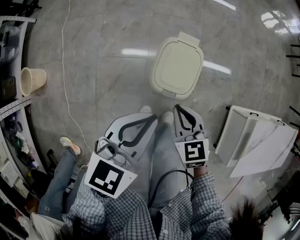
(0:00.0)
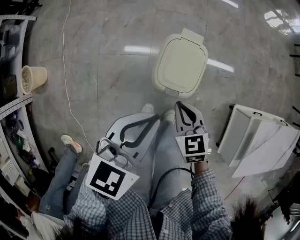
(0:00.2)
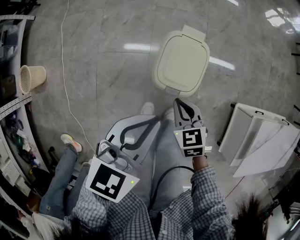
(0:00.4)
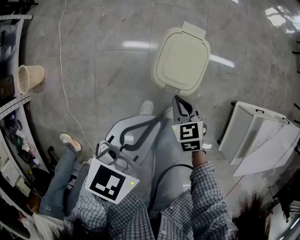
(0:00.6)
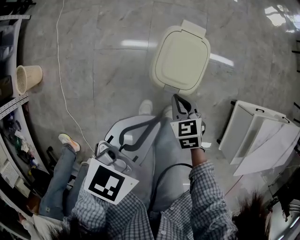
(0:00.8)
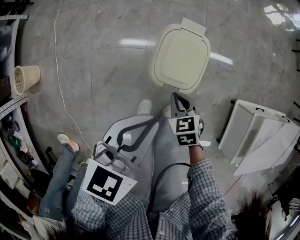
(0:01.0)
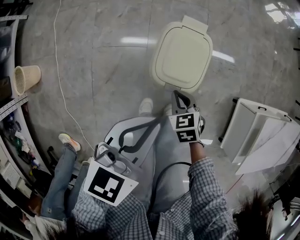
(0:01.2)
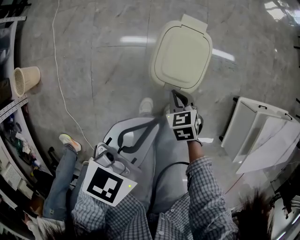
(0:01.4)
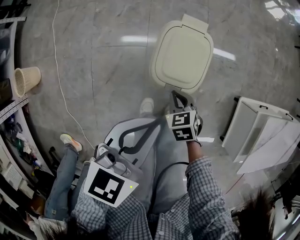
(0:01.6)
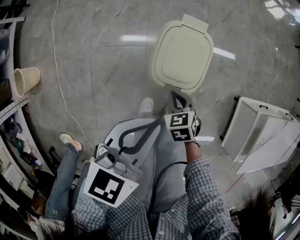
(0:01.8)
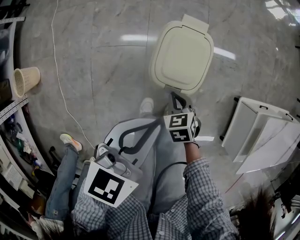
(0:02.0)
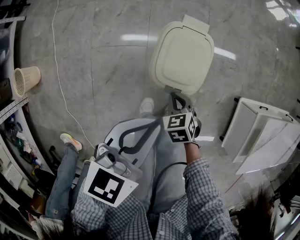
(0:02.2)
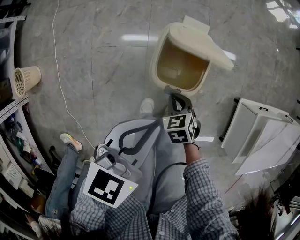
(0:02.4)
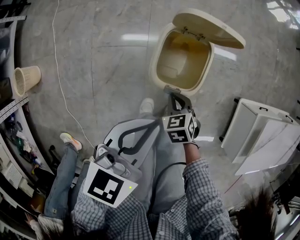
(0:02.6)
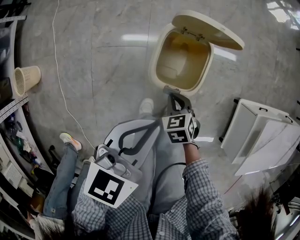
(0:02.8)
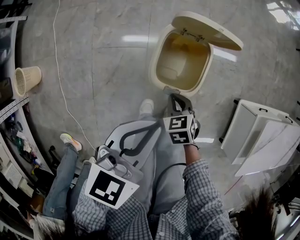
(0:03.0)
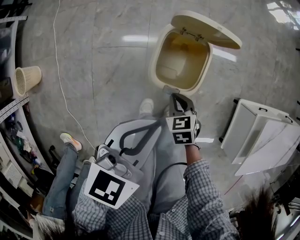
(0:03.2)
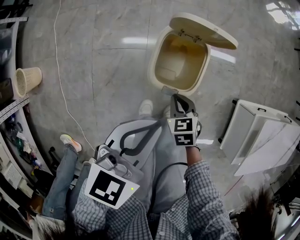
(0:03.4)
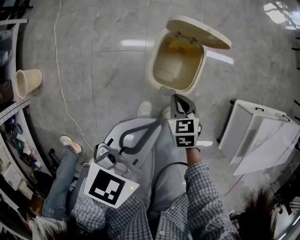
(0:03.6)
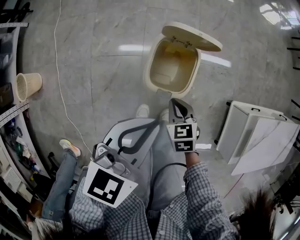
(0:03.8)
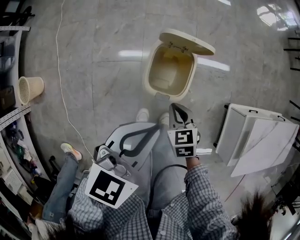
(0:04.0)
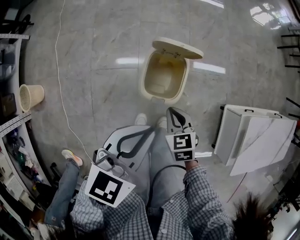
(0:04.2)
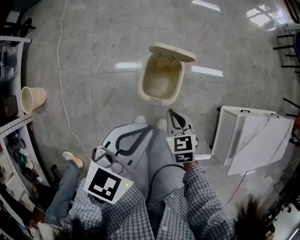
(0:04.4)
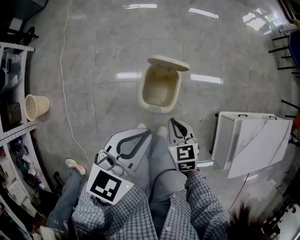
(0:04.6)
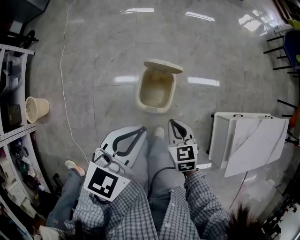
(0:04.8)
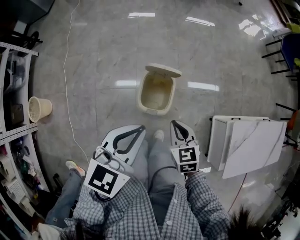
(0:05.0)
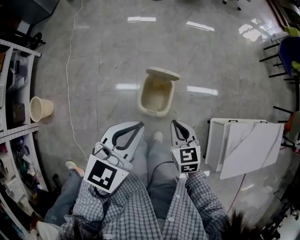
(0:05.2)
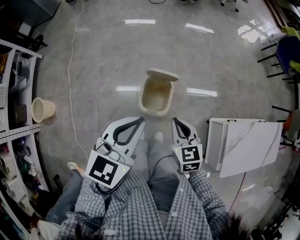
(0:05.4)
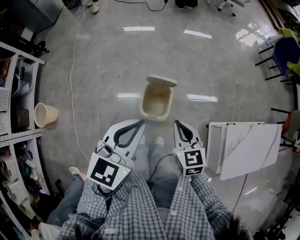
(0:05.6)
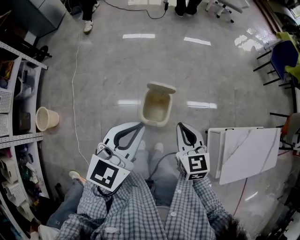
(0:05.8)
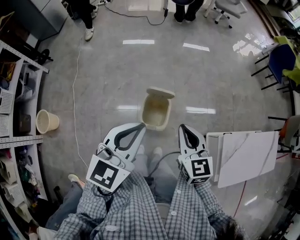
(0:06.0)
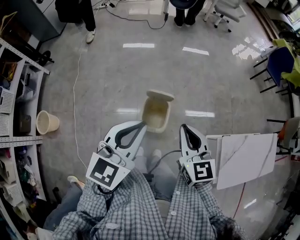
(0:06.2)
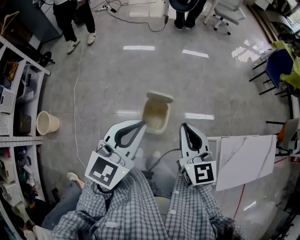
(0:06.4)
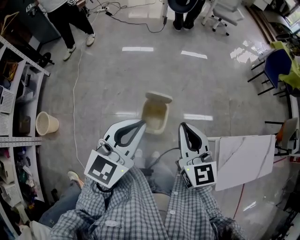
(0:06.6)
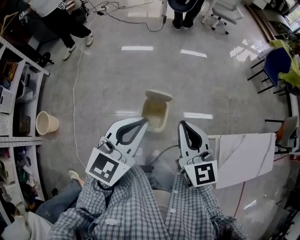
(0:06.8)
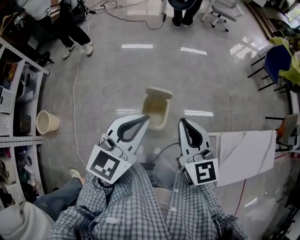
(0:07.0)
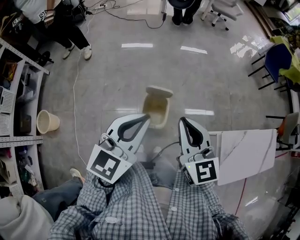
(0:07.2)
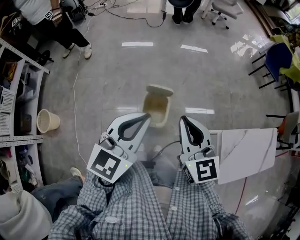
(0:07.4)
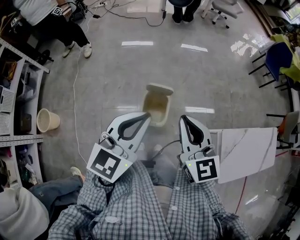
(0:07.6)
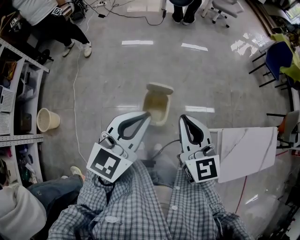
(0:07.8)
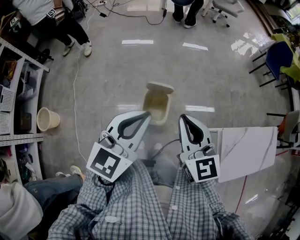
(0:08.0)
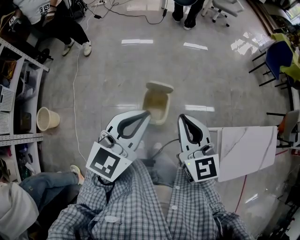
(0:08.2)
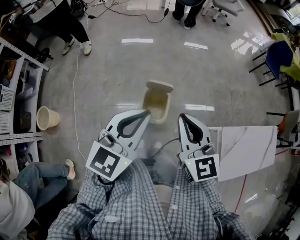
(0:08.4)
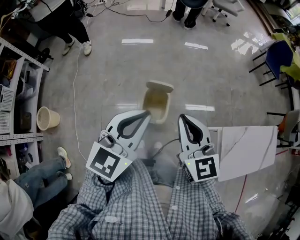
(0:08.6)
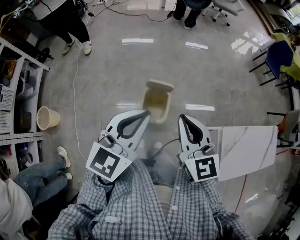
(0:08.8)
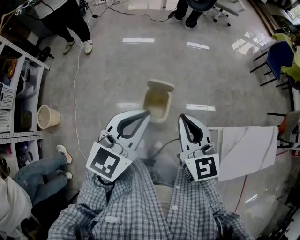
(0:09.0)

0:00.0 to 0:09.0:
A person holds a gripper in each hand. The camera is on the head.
0:00.0 to 0:01.6: The right gripper shifts roughly 20 cm downward, and rotates some 20 degrees. Meanwhile the left gripper shifts approximately 5 cm downward.
0:01.6 to 0:03.0: Neither gripper changes place.
0:03.0 to 0:04.4: The grippers both shift upward by some 15 cm.
0:04.4 to 0:06.0: The left gripper travels upward by about 20 cm. Meanwhile the right gripper shifts roughly 30 cm upward, and turns by roughly 30 degrees.
0:06.0 to 0:07.6: The right gripper moves upward, roughly 10 cm.
0:07.6 to 0:09.0: Neither gripper changes place.

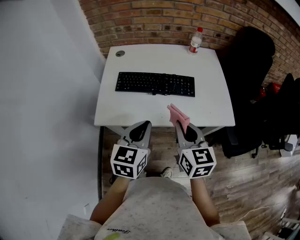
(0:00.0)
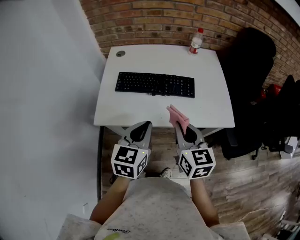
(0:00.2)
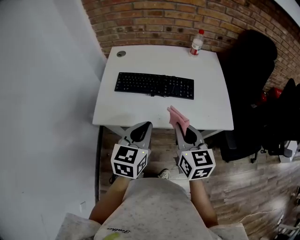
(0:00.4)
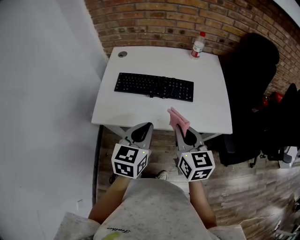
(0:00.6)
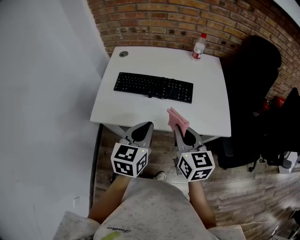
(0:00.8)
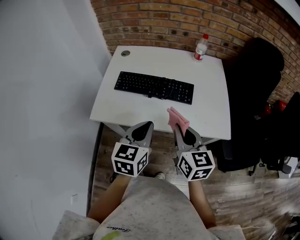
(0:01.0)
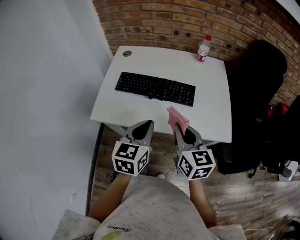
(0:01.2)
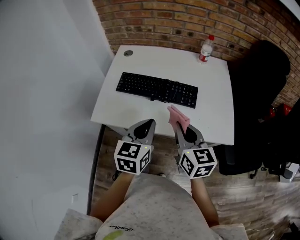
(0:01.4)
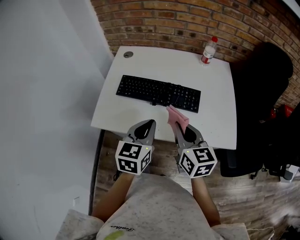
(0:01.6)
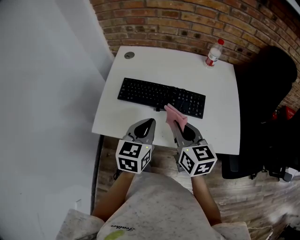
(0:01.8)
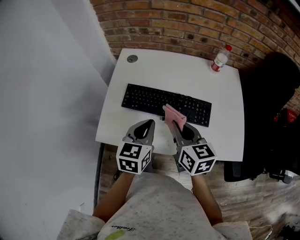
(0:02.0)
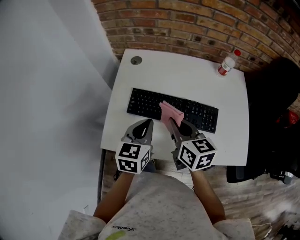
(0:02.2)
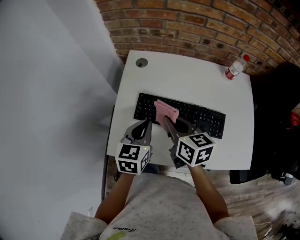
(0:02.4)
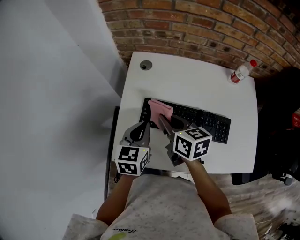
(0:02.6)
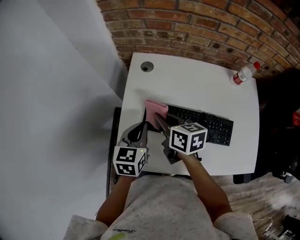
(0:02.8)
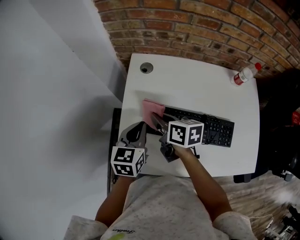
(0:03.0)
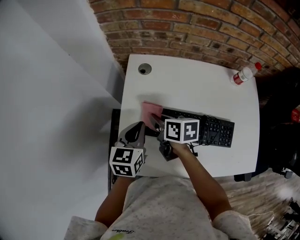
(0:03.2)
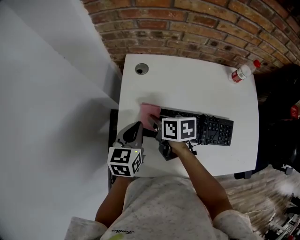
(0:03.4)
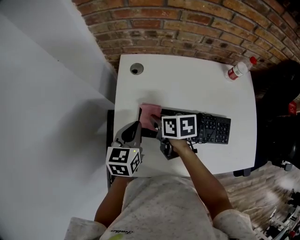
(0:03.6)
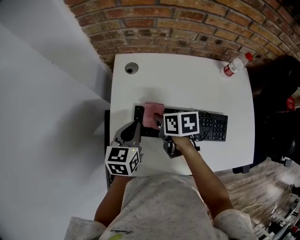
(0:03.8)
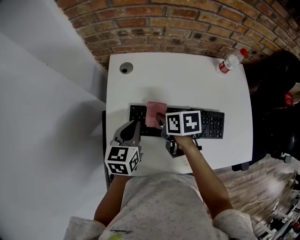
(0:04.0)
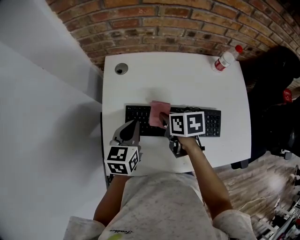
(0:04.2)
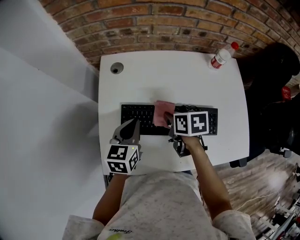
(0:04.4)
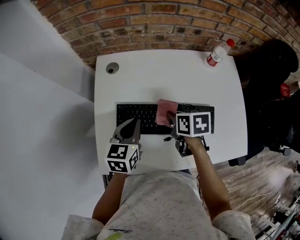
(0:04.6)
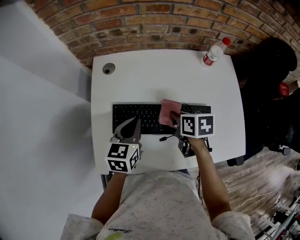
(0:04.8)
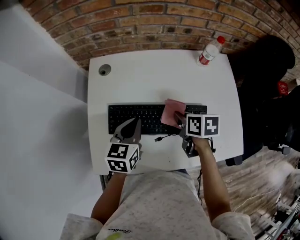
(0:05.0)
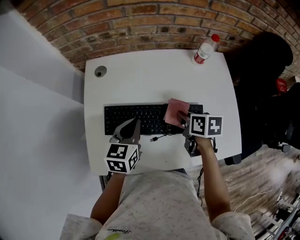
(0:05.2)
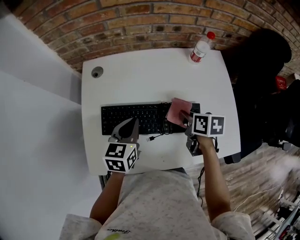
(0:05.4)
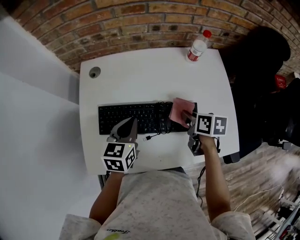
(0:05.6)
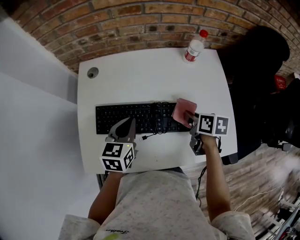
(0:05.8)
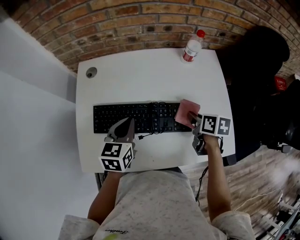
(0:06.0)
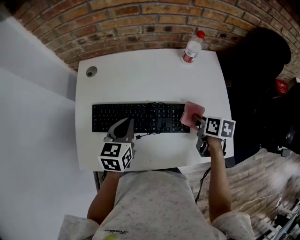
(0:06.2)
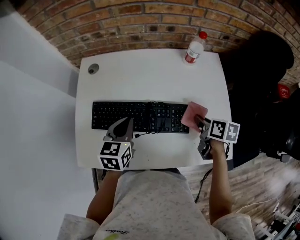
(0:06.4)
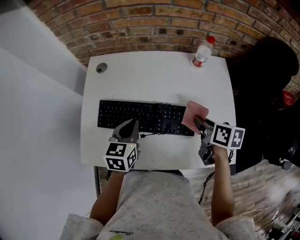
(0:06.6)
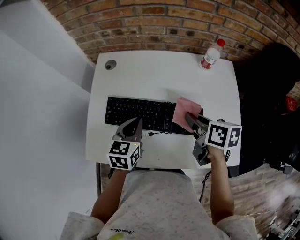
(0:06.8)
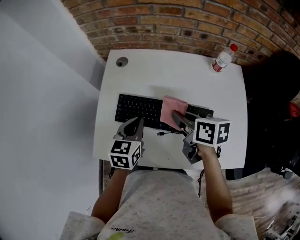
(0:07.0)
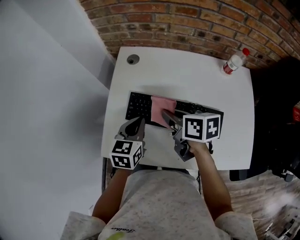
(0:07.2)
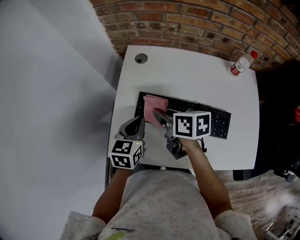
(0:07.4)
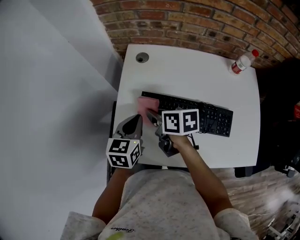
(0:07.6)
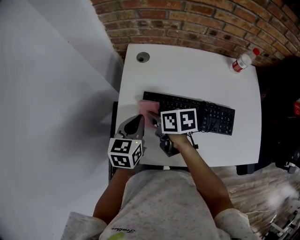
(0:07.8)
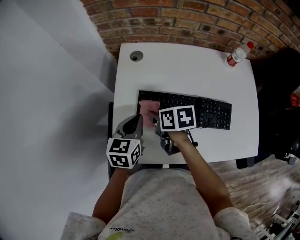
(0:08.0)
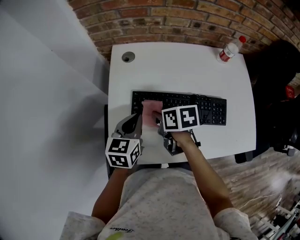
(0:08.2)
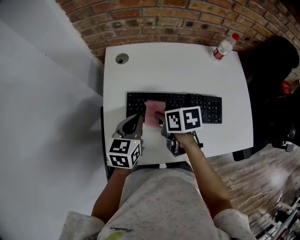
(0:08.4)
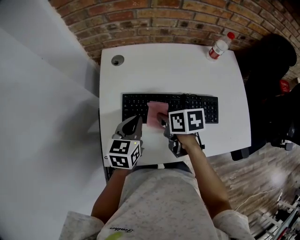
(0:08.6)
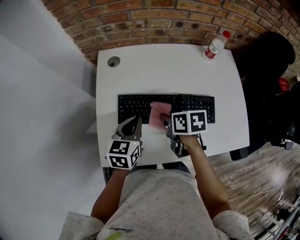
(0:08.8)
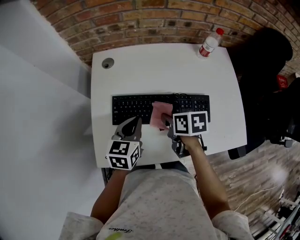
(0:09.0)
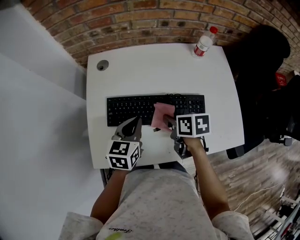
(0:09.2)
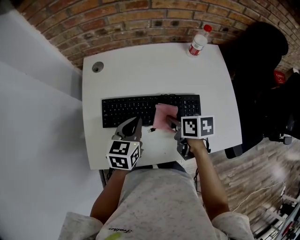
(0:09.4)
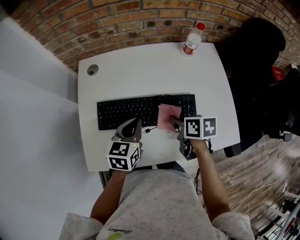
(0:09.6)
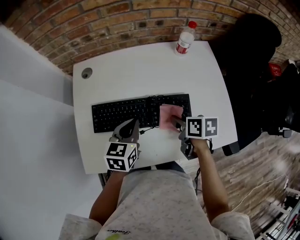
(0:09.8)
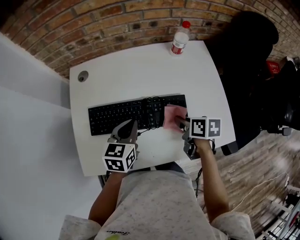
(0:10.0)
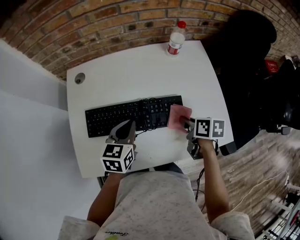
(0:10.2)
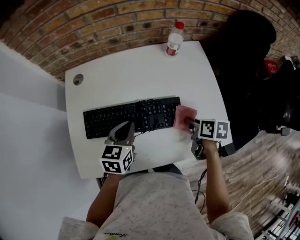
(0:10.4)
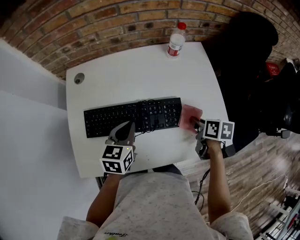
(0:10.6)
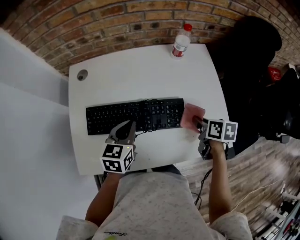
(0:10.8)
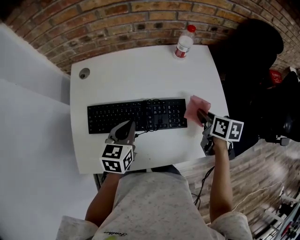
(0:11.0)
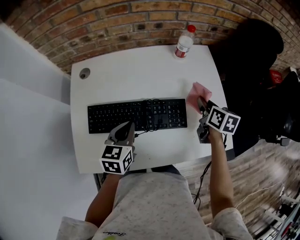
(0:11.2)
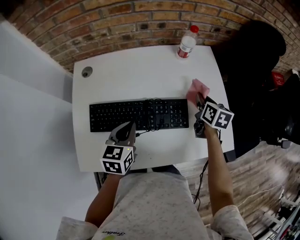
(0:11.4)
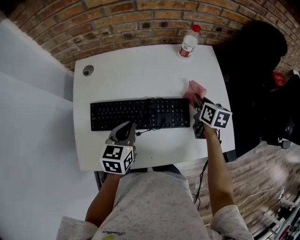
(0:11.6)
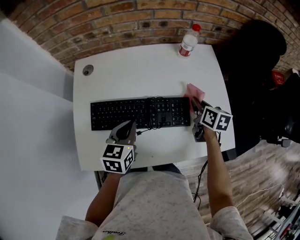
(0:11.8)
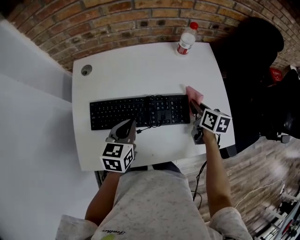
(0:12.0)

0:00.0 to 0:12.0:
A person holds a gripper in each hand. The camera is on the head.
0:00.0 to 0:01.6: Both grippers move forward, roughly 10 cm.
0:01.6 to 0:03.0: The two grippers go approximately 35 cm forward and to the left. The right gripper rotates some 30 degrees.
0:03.0 to 0:04.4: The right gripper goes roughly 15 cm to the right, and rotates about 20 degrees. Meanwhile the left gripper moves to the right, approximately 10 cm.
0:04.4 to 0:06.0: The right gripper travels to the right by approximately 25 cm; the left gripper travels to the right by some 10 cm.
0:06.0 to 0:07.6: The left gripper moves to the left, approximately 20 cm. Meanwhile the right gripper heads to the left, covering roughly 40 cm, and swivels approximately 30 degrees.
0:07.6 to 0:09.0: The left gripper shifts approximately 10 cm to the right. The right gripper heads to the right, covering some 15 cm.
0:09.0 to 0:10.4: The right gripper moves to the right, approximately 25 cm. The left gripper travels to the right by roughly 10 cm.
0:10.4 to 0:12.0: The right gripper travels forward by approximately 5 cm.

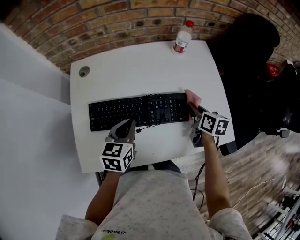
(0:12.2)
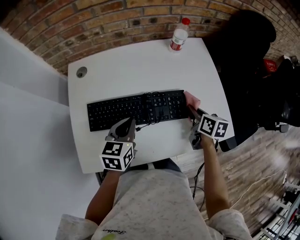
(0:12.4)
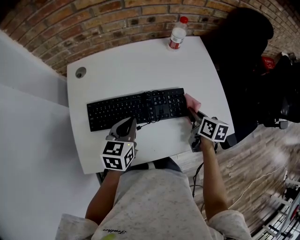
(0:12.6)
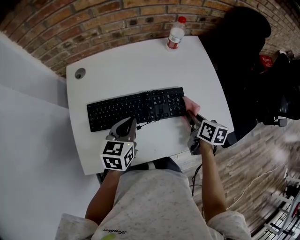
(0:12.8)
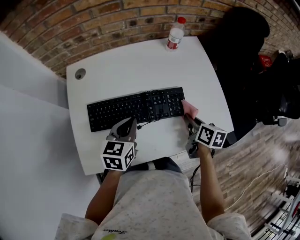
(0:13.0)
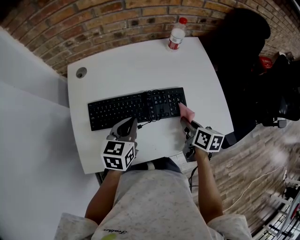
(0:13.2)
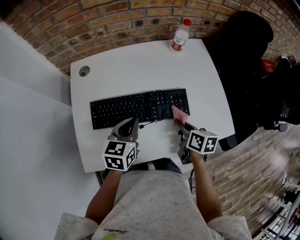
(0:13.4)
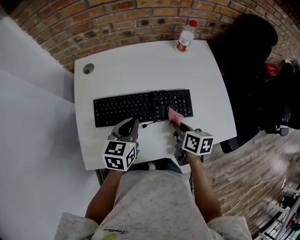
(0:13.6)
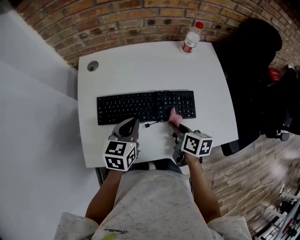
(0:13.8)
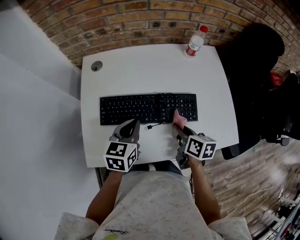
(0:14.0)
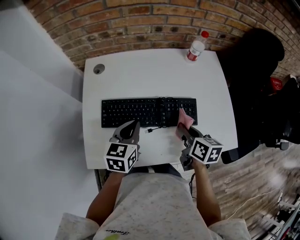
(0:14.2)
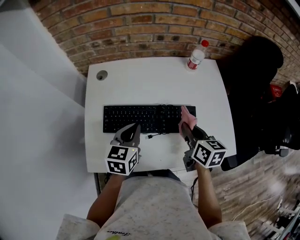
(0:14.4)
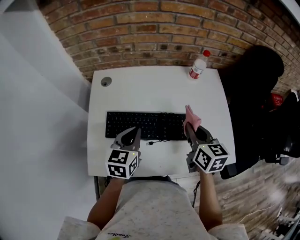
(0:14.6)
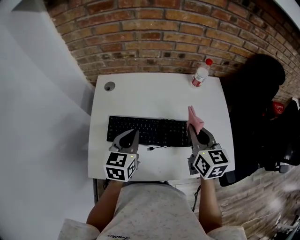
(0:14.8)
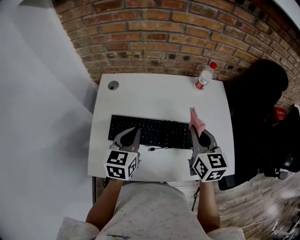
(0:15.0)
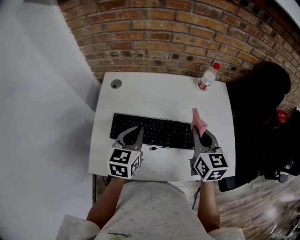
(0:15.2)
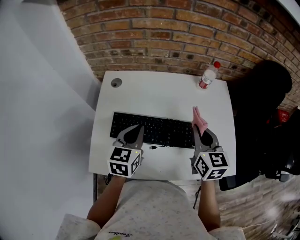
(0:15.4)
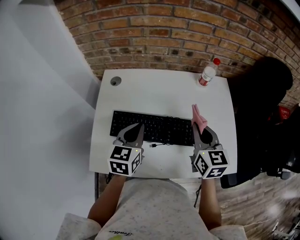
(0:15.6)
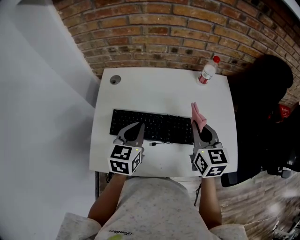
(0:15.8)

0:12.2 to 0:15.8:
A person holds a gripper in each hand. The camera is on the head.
0:12.2 to 0:14.0: The right gripper shifts roughly 15 cm to the left and backward.
0:14.0 to 0:15.8: The right gripper moves upward and forward, about 15 cm, and turns by roughly 40 degrees; the left gripper is displaced upward by about 5 cm.
